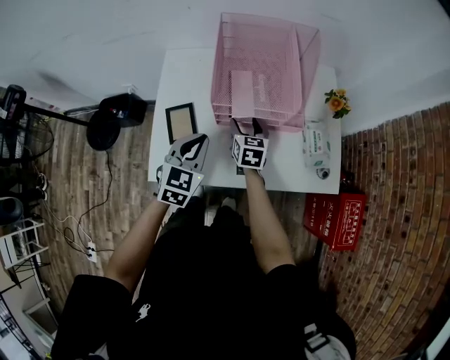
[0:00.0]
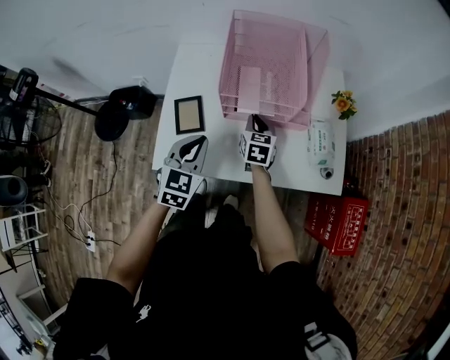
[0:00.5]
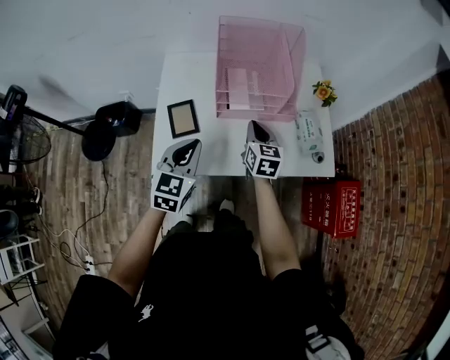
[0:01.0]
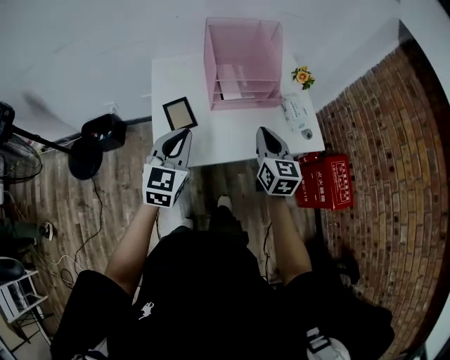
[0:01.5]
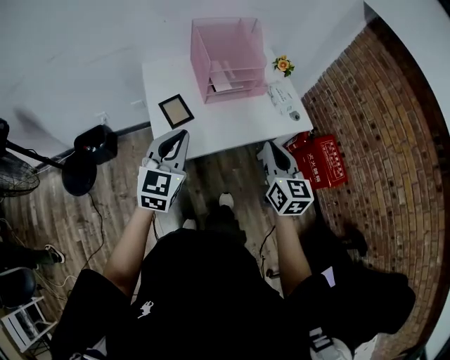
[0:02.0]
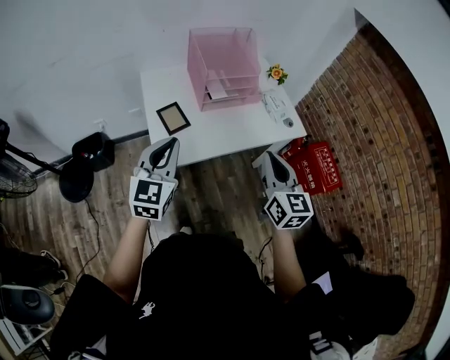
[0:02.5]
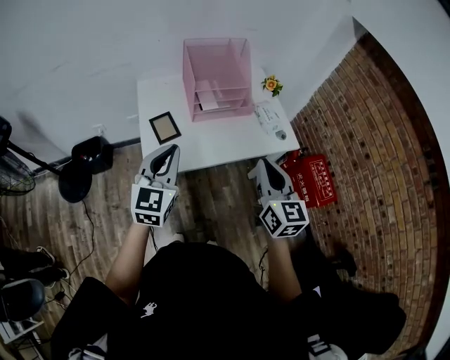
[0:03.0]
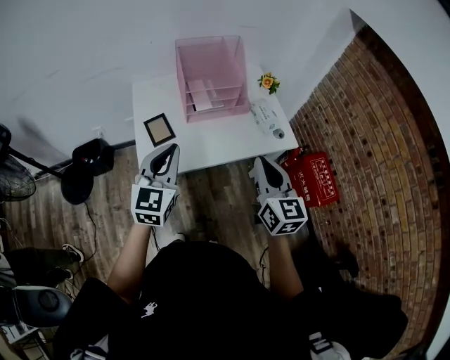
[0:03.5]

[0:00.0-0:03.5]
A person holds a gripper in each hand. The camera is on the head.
0:00.0 to 0:02.0: The right gripper shifts approximately 40 cm backward and upward, changes its angle by some 30 degrees, and closes, while the left gripper goes some 25 cm backward, upward and to the left, and turns by approximately 20 degrees.
0:02.0 to 0:03.5: The grippers both shift to the right by roughly 5 cm.

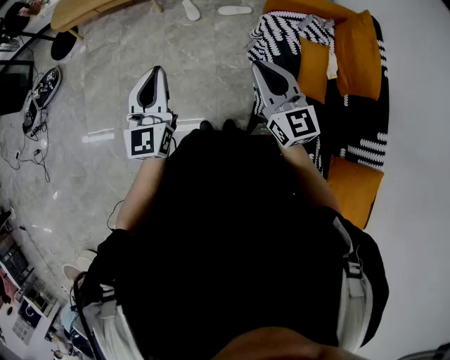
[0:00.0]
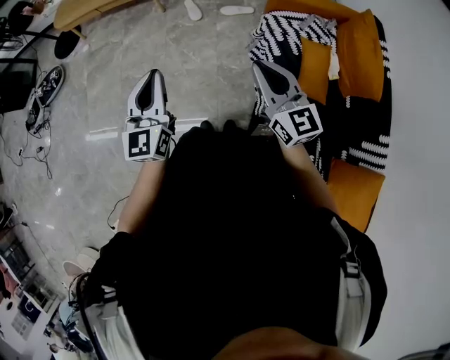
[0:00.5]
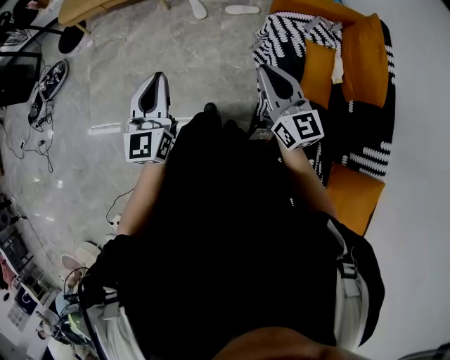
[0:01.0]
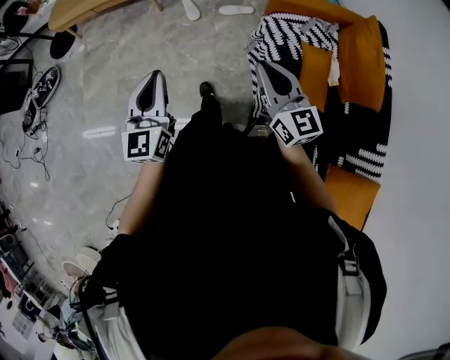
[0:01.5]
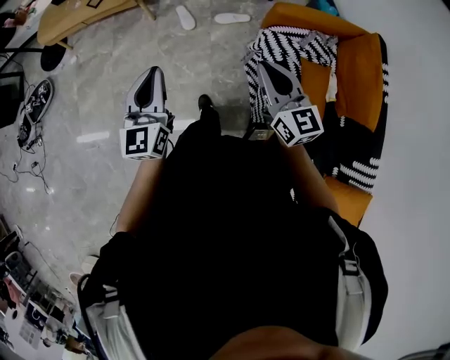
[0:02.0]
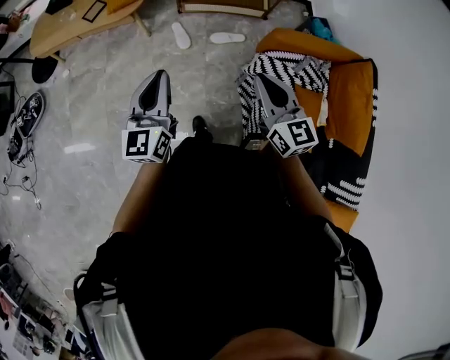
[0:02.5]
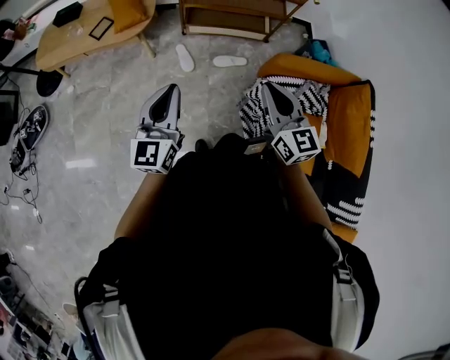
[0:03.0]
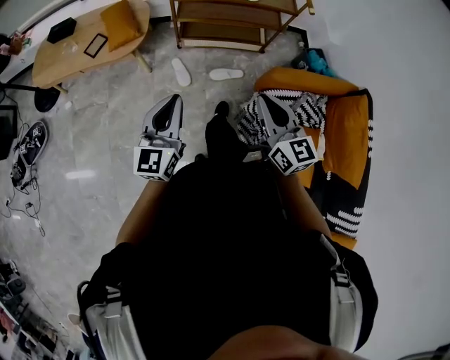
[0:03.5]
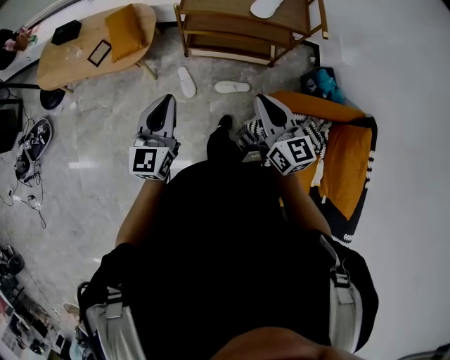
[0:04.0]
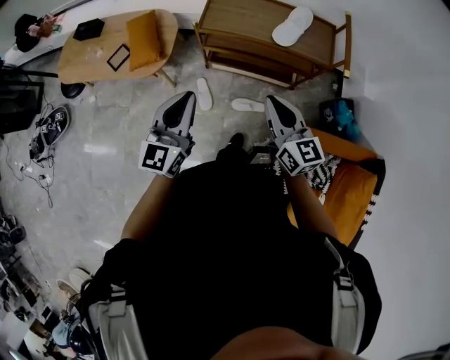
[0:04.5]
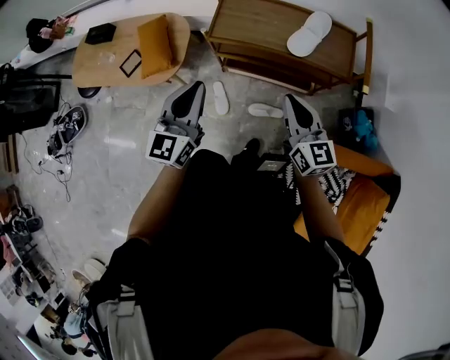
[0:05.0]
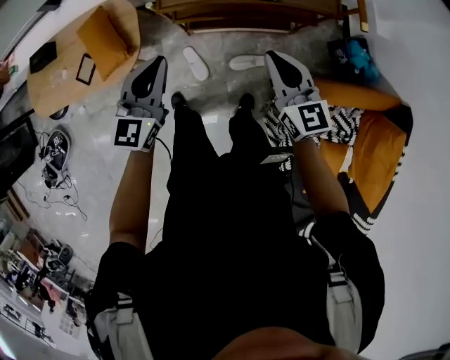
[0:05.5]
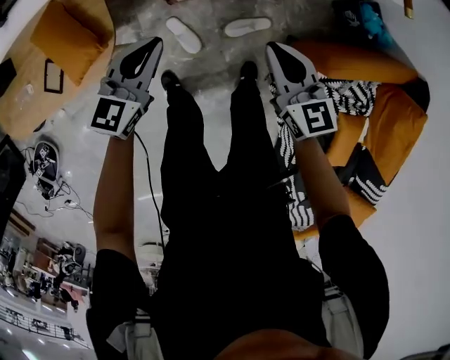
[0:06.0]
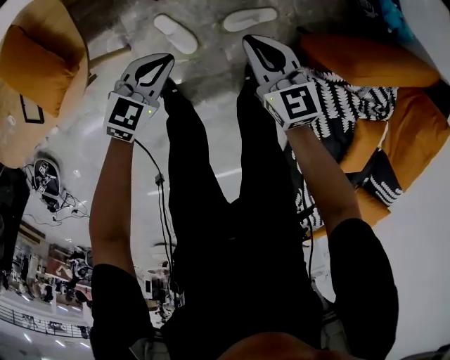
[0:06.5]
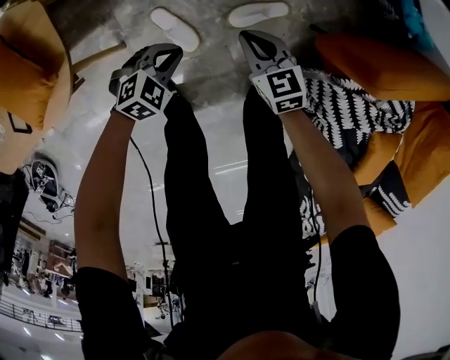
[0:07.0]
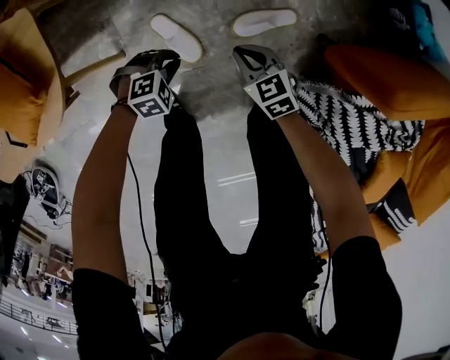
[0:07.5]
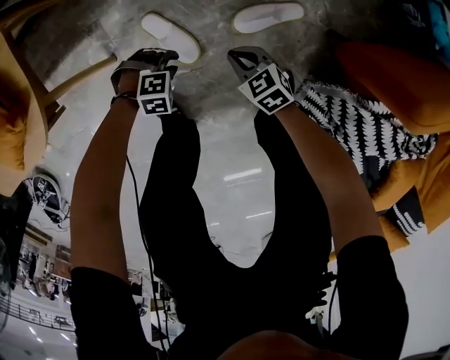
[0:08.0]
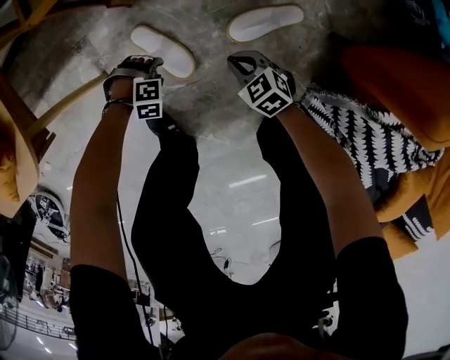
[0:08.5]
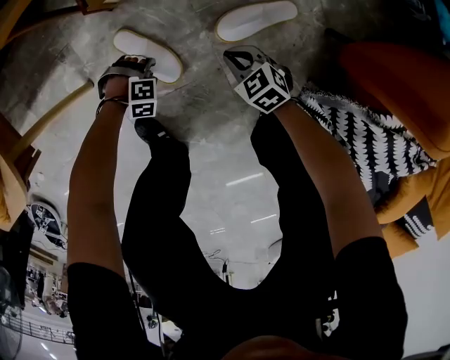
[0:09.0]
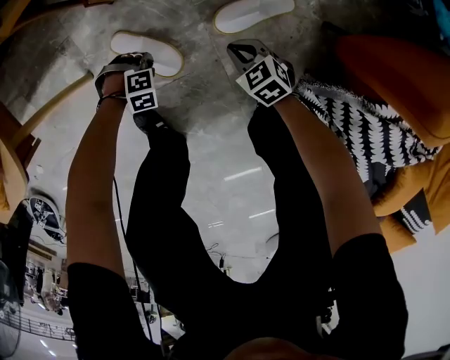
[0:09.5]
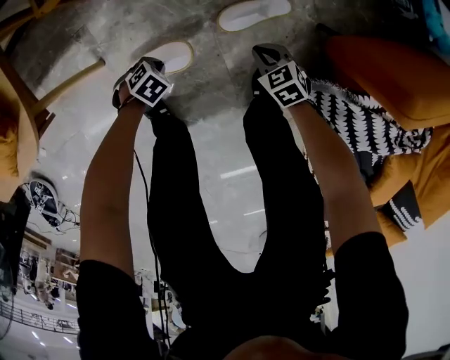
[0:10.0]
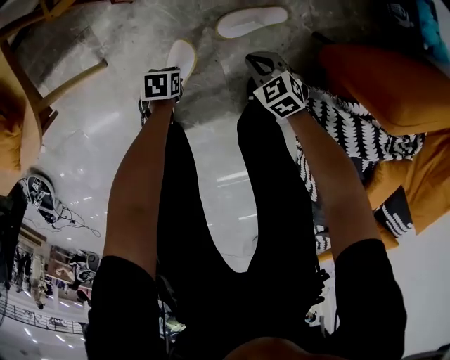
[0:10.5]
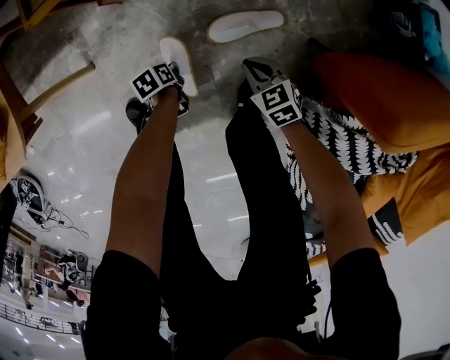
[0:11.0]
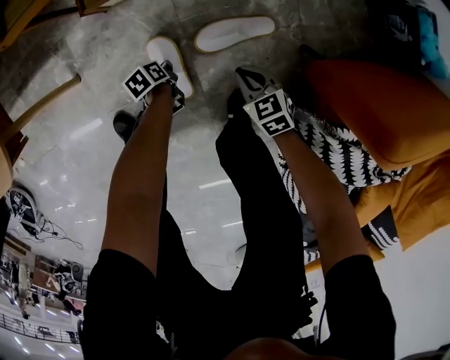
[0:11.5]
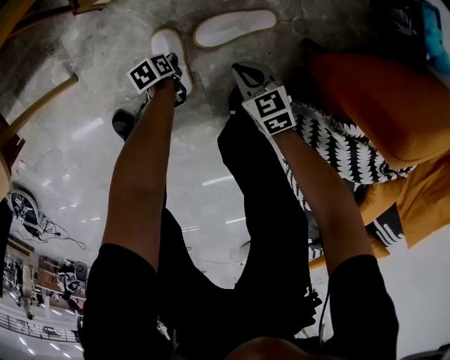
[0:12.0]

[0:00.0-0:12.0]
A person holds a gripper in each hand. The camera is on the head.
0:00.0 to 0:02.0: Both grippers travel together forward, approximately 20 cm.
0:02.0 to 0:04.0: The grippers both shift forward by some 30 cm.
0:04.0 to 0:06.0: The right gripper goes roughly 25 cm downward. Meanwhile the left gripper moves about 35 cm, and turns by approximately 40 degrees.
0:06.0 to 0:08.0: Both grippers travel together downward, about 50 cm. The right gripper changes its angle by some 40 degrees. The left gripper points its fingers about 50 degrees further downward, and opens.
0:08.0 to 0:10.0: The left gripper moves about 15 cm downward and comes back, rotates around the line of its fingers by some 50 degrees, counterclockwise from behind, and closes; the right gripper reaches roughly 10 cm downward, then returns.
0:10.0 to 0:12.0: The left gripper heads downward, covering approximately 10 cm, and rolls counterclockwise, seen from behind, by about 80 degrees.

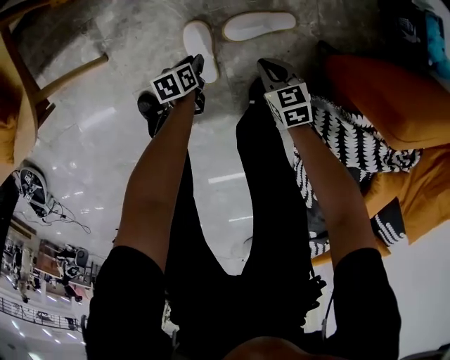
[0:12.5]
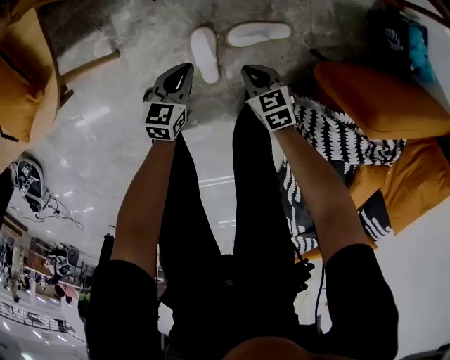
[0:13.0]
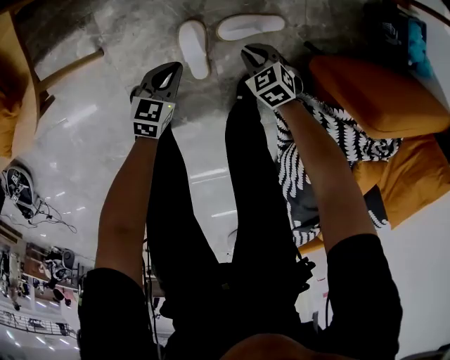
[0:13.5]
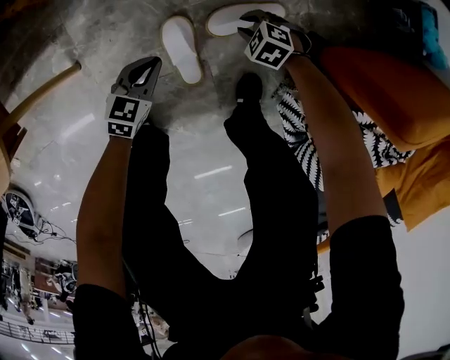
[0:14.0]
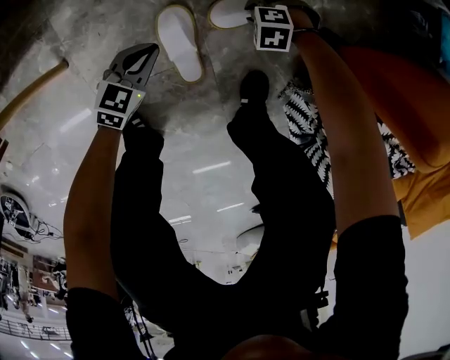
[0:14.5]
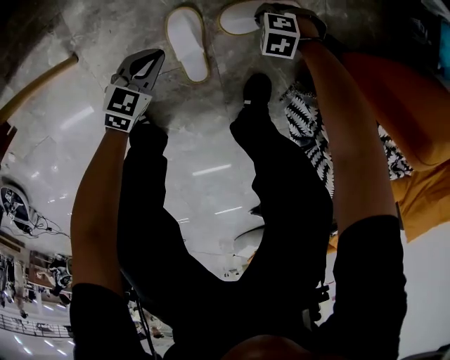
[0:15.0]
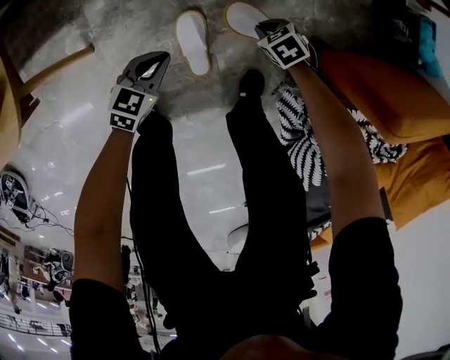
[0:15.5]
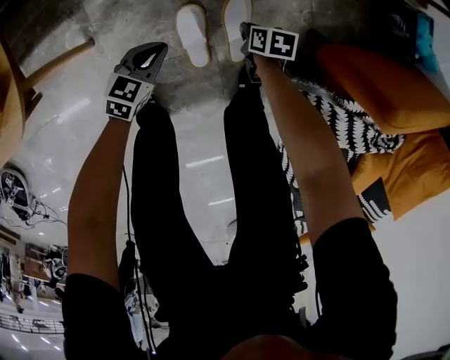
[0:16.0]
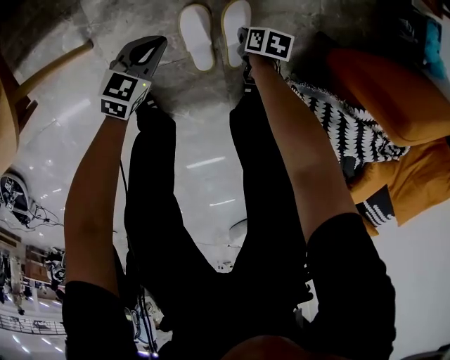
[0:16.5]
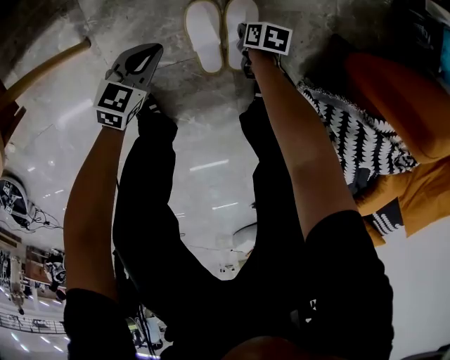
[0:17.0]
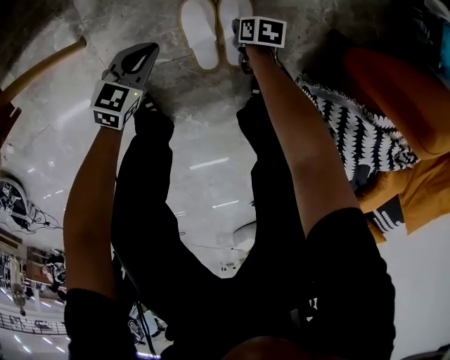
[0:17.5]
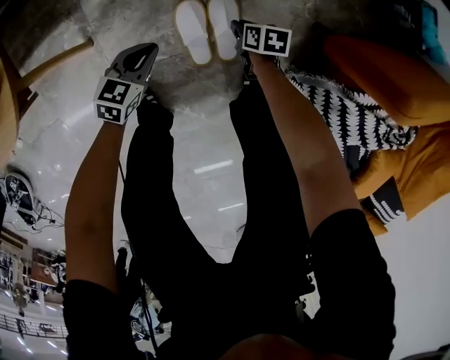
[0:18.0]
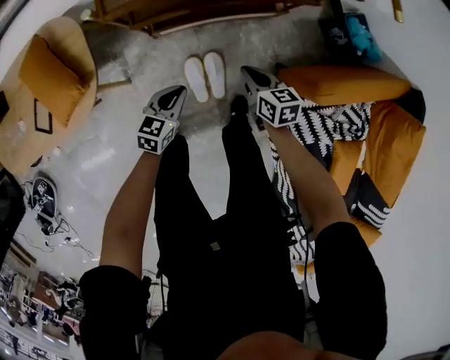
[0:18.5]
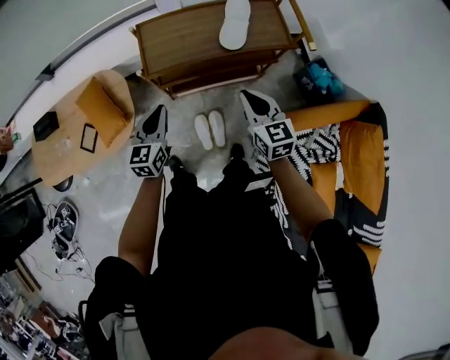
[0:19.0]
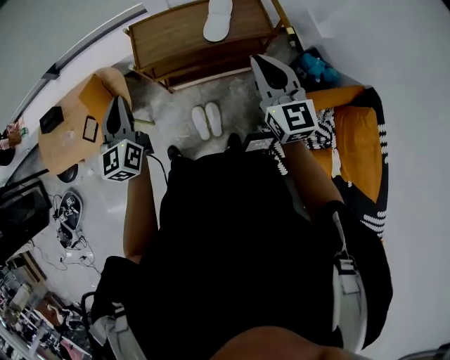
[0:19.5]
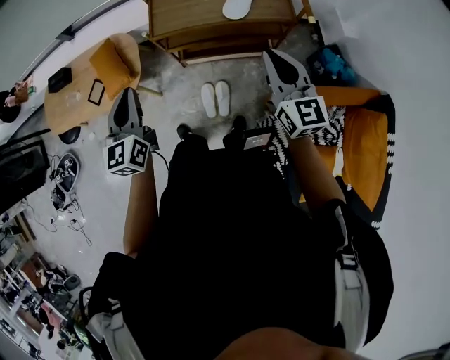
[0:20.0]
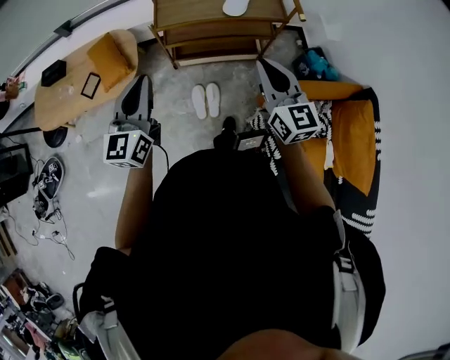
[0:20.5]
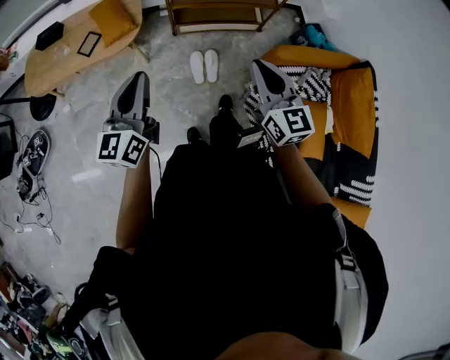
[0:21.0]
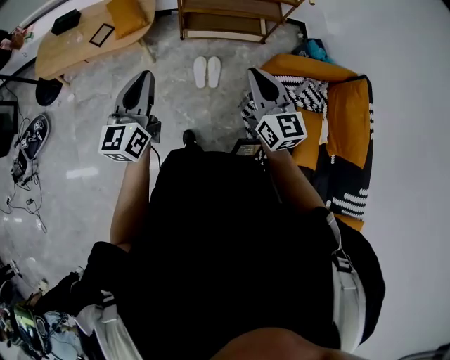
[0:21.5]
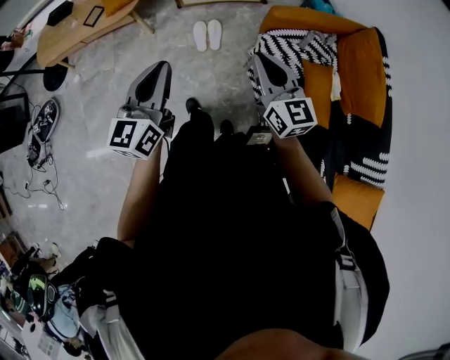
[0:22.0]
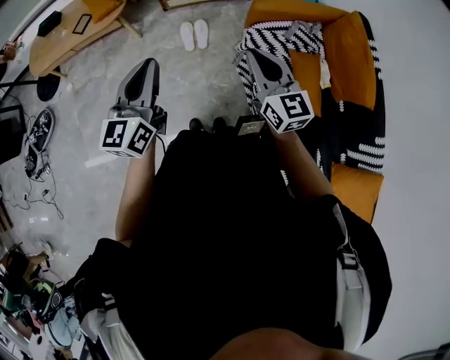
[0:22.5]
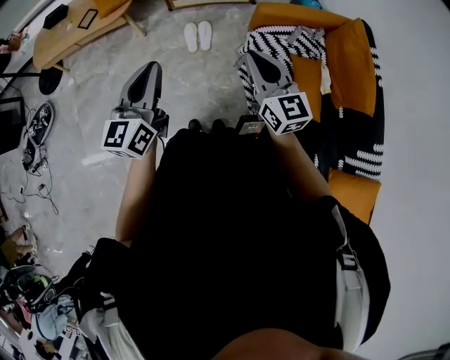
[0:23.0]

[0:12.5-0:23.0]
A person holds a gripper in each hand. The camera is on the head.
0:12.5 to 0:14.5: The right gripper goes approximately 20 cm downward, and rolls counterclockwise, seen from behind, by approximately 60 degrees. Meanwhile the left gripper goes upward and returns, approximately 20 cm each way, rotates around the line of its fingers by roughly 60 degrees, clockwise from behind, and closes.
0:14.5 to 0:16.5: Both grippers travel together upward, some 5 cm. The right gripper rolls clockwise, seen from behind, by approximately 110 degrees.
0:16.5 to 0:19.0: The two grippers go roughly 70 cm upward. The left gripper rotates about 40 degrees, while the right gripper angles its fingers upward, by some 50 degrees.
0:19.0 to 0:21.0: The right gripper travels backward by roughly 30 cm, while the left gripper travels backward and upward by roughly 40 cm, and rotates some 20 degrees.
0:21.0 to 0:23.0: The grippers both shift backward and to the right by roughly 25 cm.
